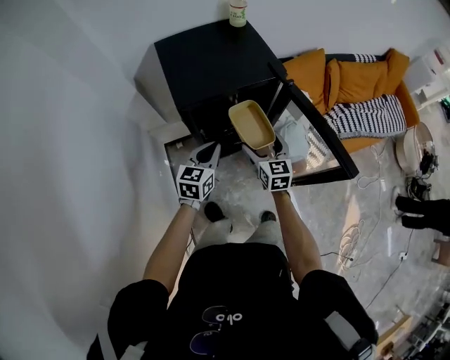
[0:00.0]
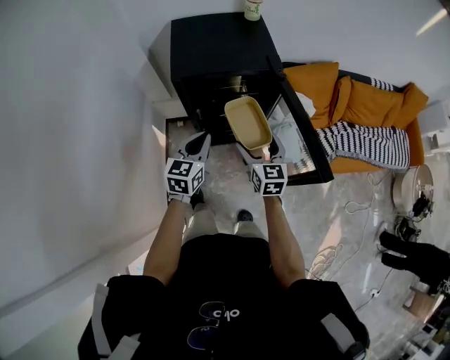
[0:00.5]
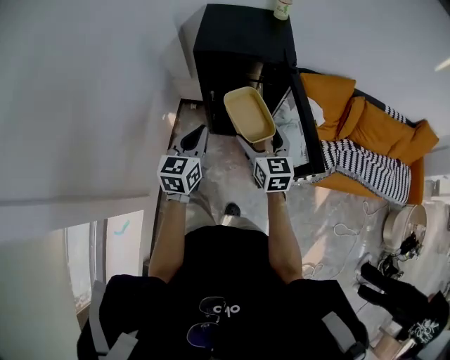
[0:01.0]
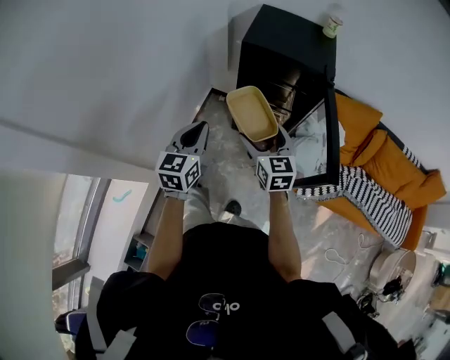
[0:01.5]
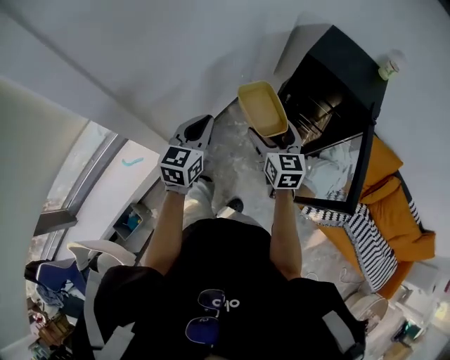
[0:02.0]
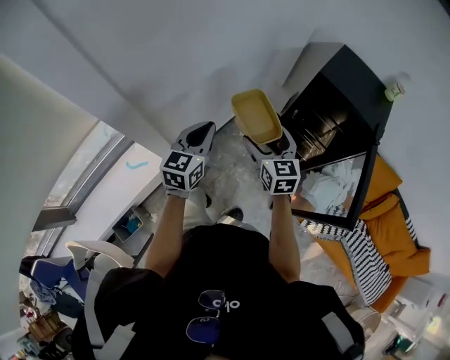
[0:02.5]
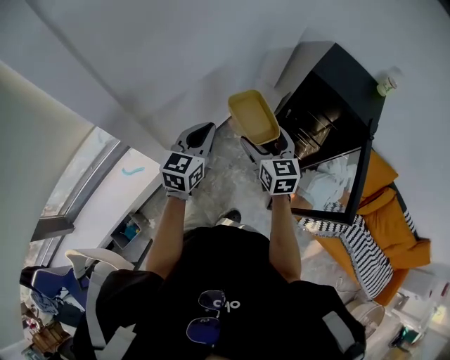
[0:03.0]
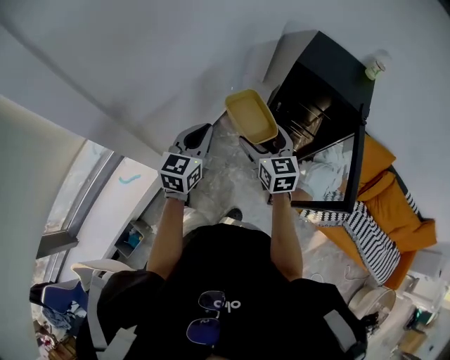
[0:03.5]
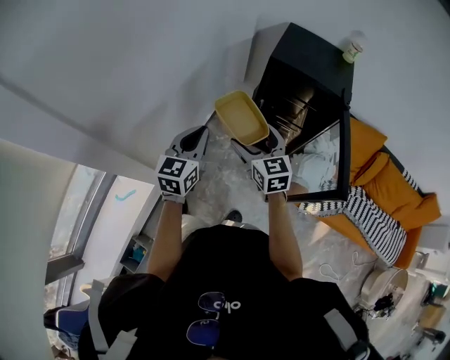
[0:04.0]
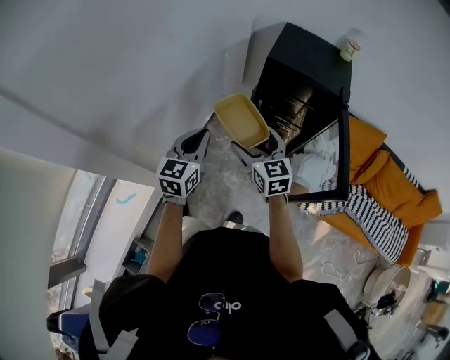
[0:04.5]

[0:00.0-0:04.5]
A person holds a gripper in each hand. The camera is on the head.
0:00.0 to 0:02.0: The left gripper changes place by about 40 cm, and swivels roughly 60 degrees; the right gripper shifts by roughly 30 cm, and changes its angle by some 50 degrees.
0:02.0 to 0:04.5: The left gripper travels to the right by approximately 5 cm.

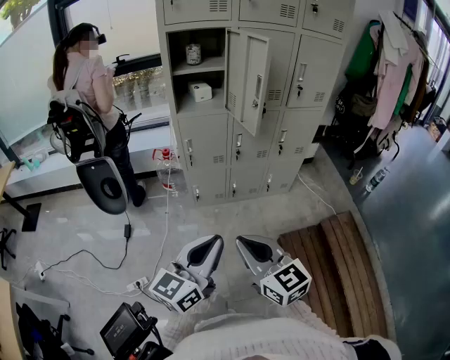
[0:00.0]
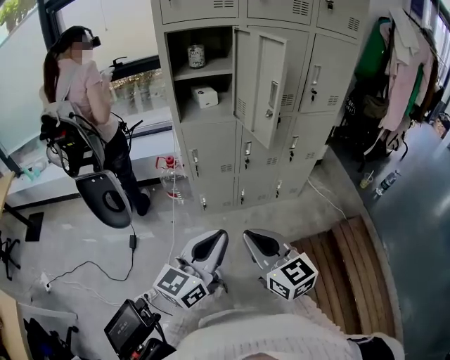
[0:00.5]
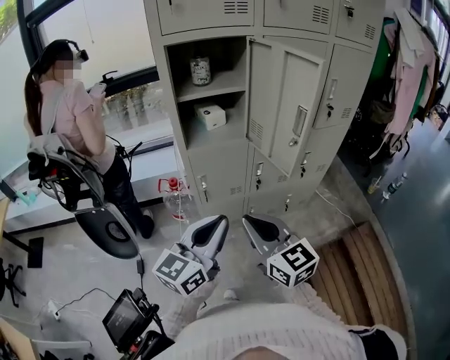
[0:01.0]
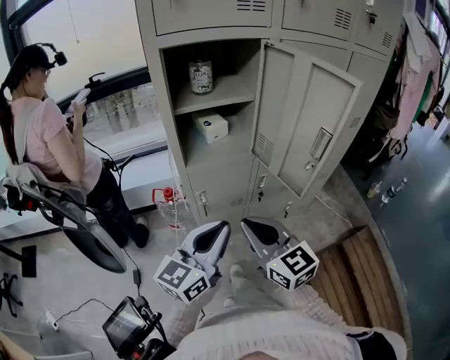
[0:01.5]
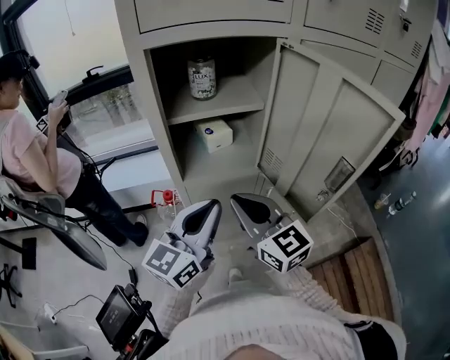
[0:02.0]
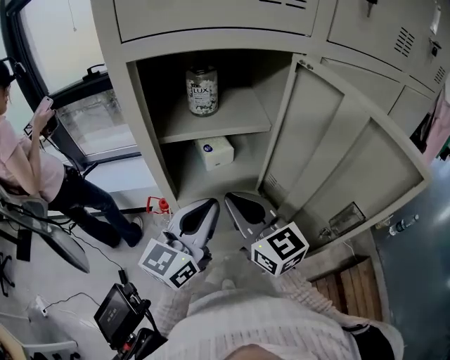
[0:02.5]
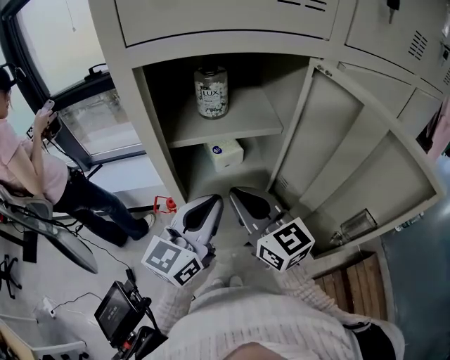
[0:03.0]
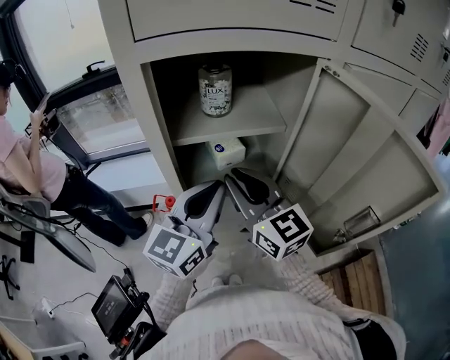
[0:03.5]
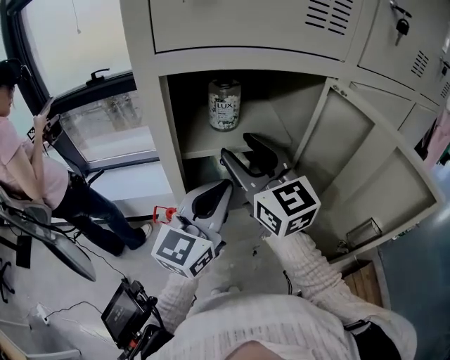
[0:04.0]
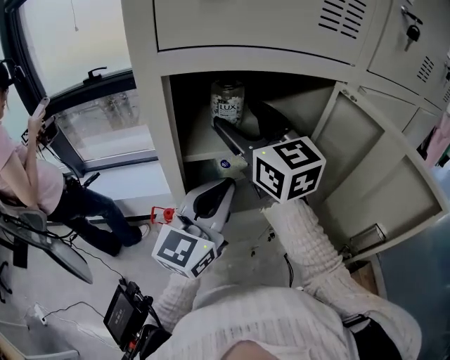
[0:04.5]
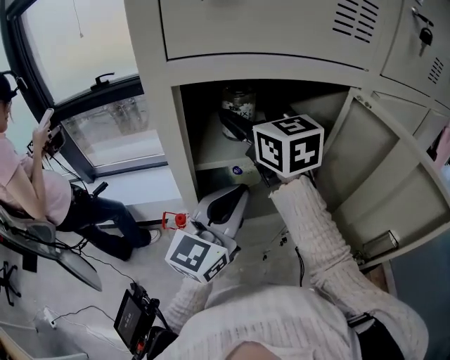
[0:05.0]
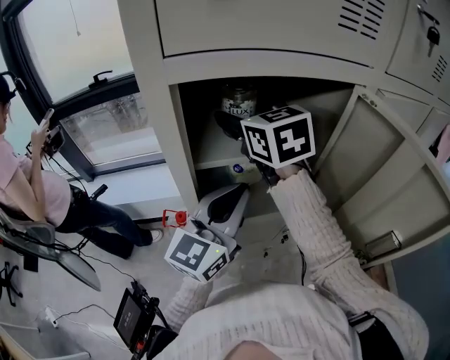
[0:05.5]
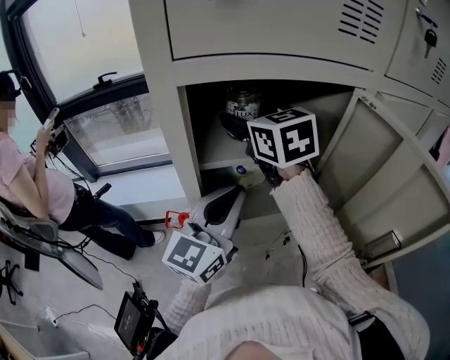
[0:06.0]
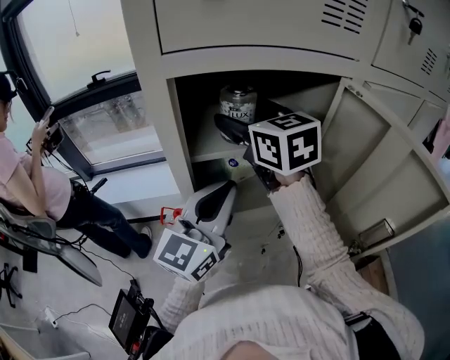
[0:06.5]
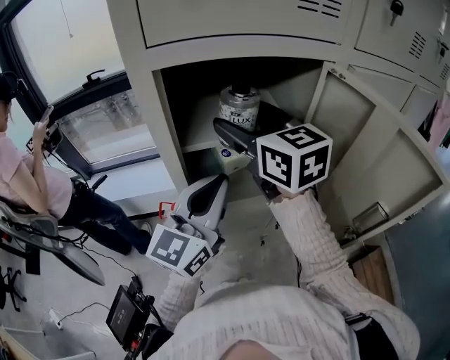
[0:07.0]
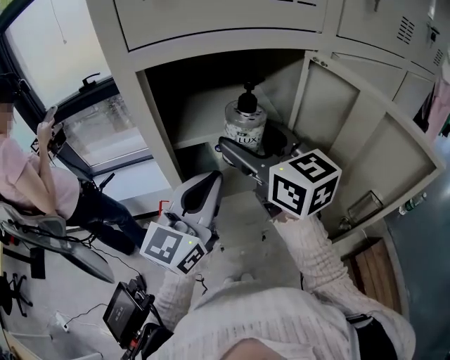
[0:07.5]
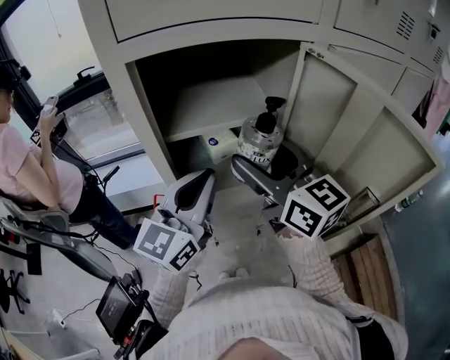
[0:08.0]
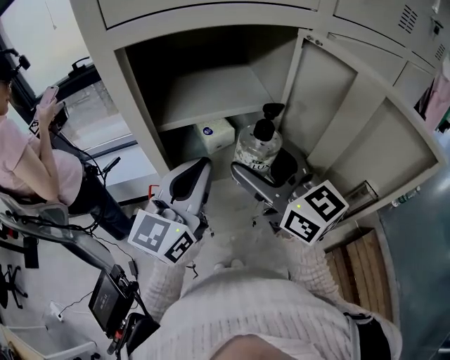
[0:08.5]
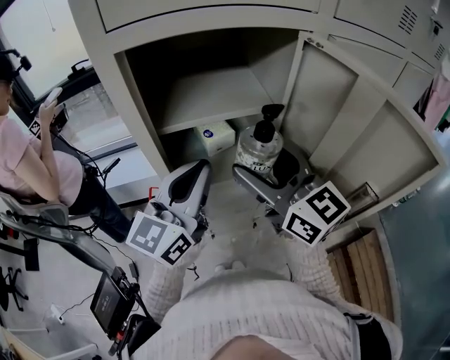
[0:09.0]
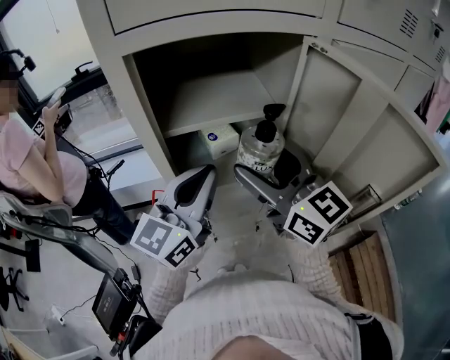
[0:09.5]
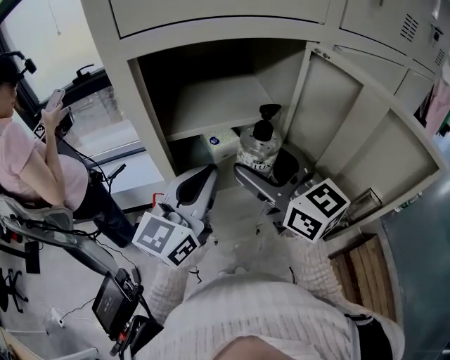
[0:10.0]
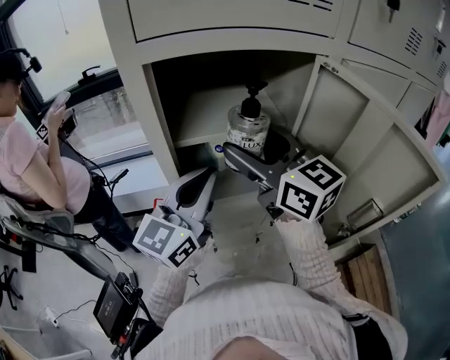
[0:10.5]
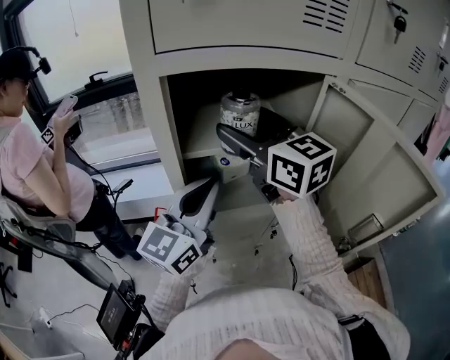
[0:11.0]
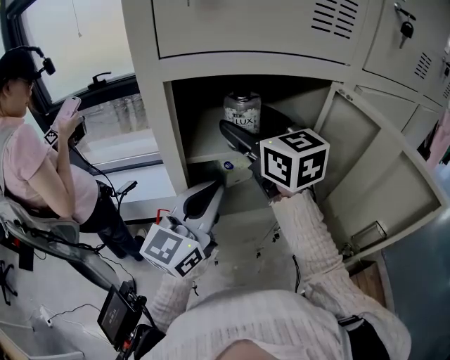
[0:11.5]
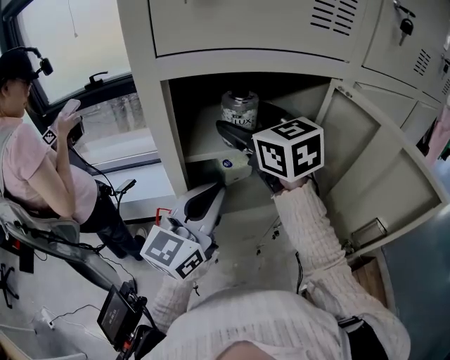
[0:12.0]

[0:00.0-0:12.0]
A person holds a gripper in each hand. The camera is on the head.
0:00.0 to 0:02.0: Both grippers are carried forward, approximately 50 cm.
0:02.0 to 0:04.0: The grippers both shift forward and upward by some 20 cm. The right gripper opens up.
0:04.0 to 0:06.0: The right gripper shifts approximately 10 cm forward, and opens up.
0:06.0 to 0:08.0: The right gripper is displaced backward and to the right by about 20 cm, and turns by approximately 20 degrees.
0:08.0 to 0:10.0: The grippers stay close to where they were, moving slightly.
0:10.0 to 0:12.0: The right gripper moves forward, upward and to the left, approximately 15 cm.

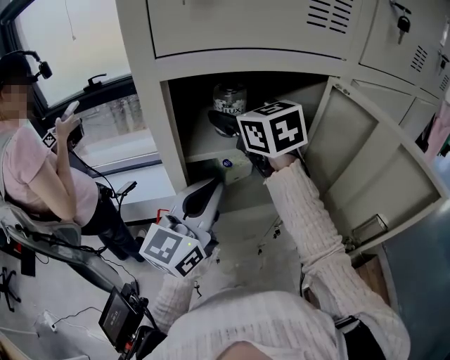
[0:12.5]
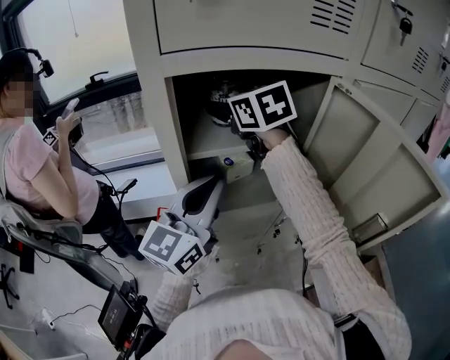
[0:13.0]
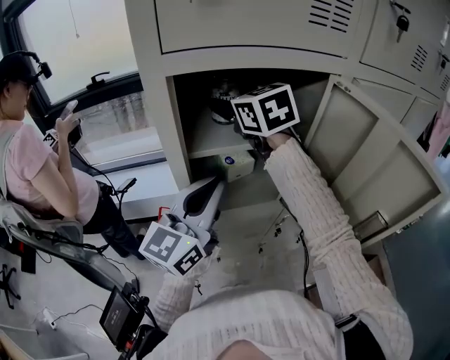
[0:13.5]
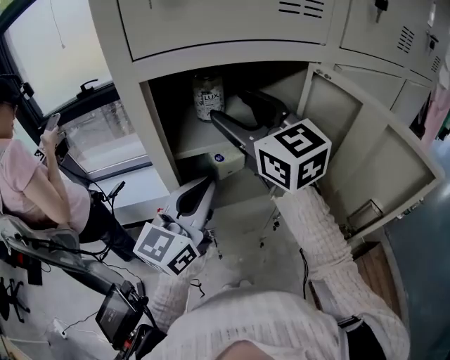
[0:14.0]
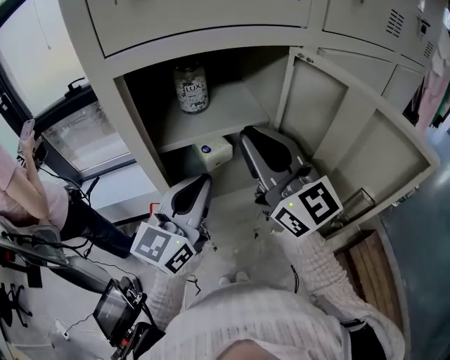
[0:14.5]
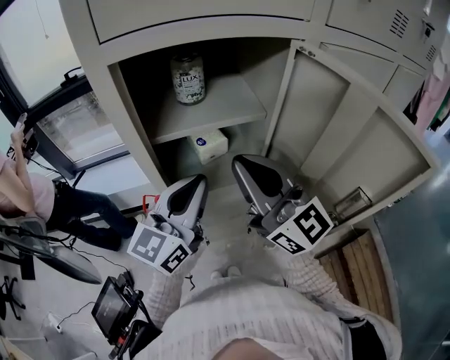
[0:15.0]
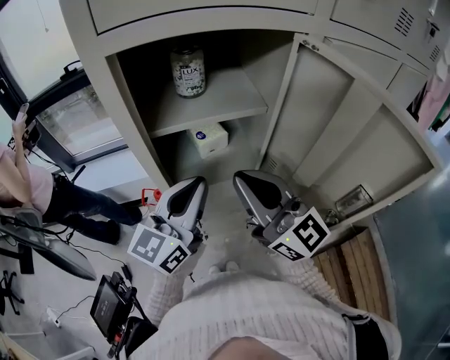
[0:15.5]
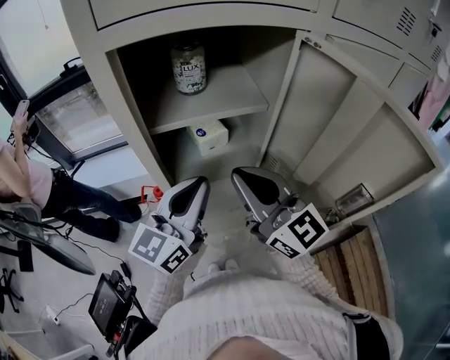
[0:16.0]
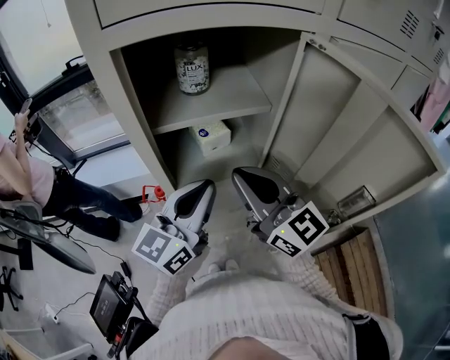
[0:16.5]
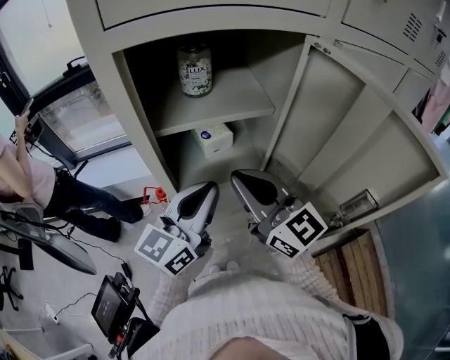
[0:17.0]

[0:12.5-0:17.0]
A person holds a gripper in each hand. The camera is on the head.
0:12.5 to 0:14.5: The right gripper is displaced backward and to the right by approximately 20 cm, points its fingers approximately 30 degrees further upward, and closes up.
0:14.5 to 0:17.0: The right gripper moves downward, some 10 cm.

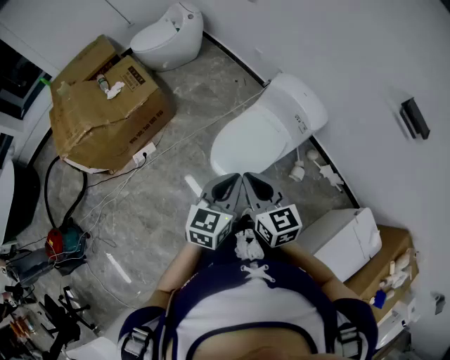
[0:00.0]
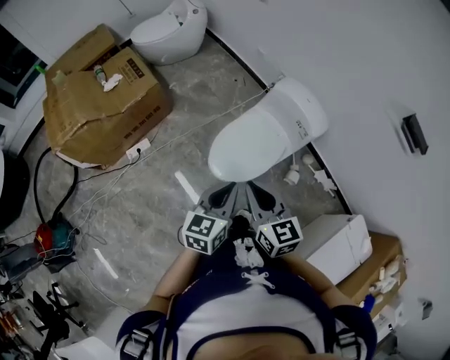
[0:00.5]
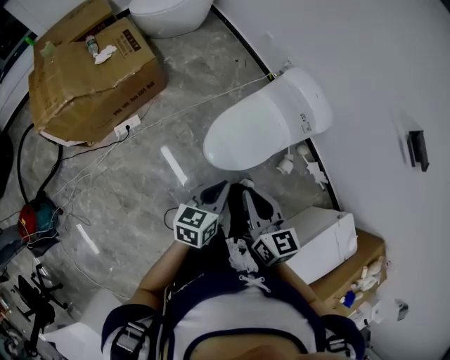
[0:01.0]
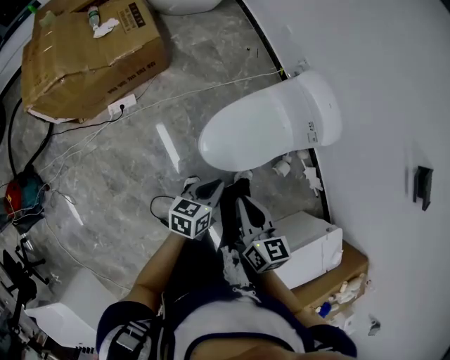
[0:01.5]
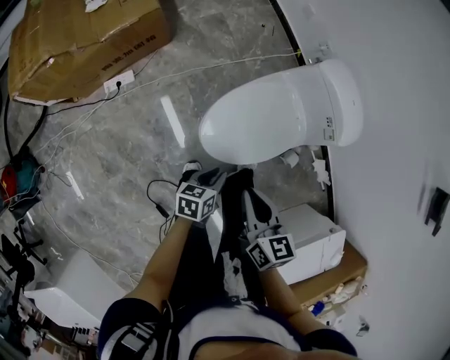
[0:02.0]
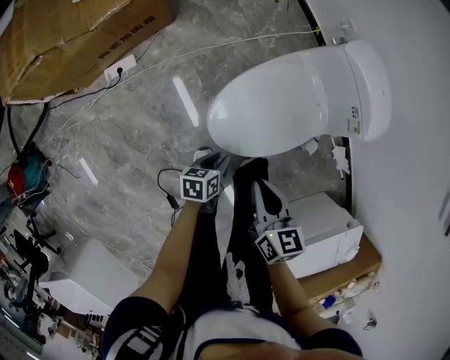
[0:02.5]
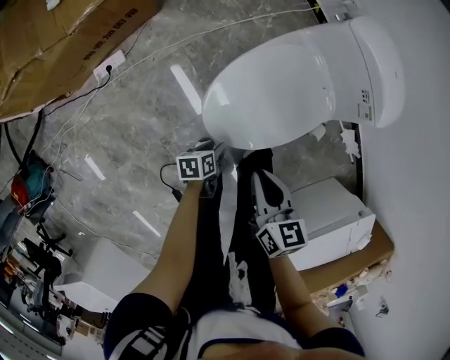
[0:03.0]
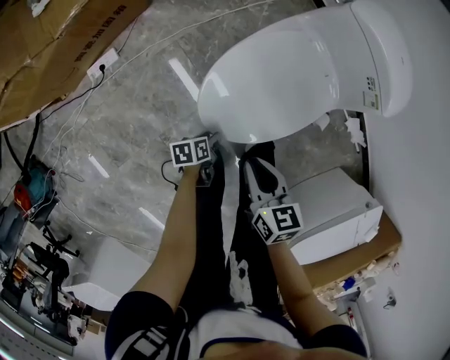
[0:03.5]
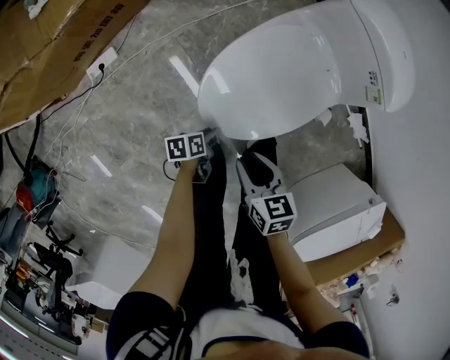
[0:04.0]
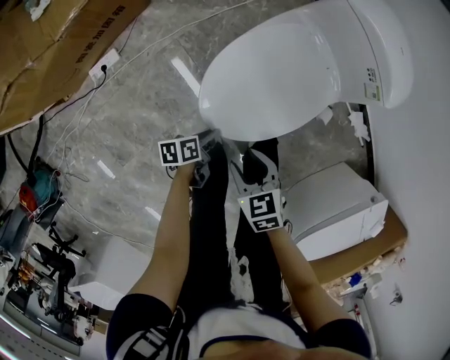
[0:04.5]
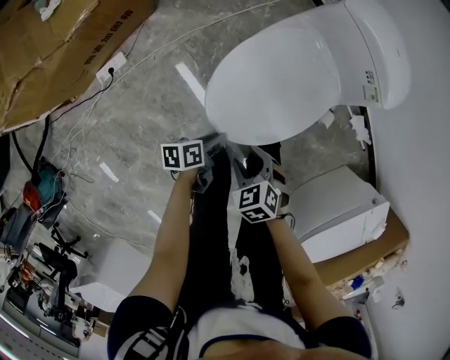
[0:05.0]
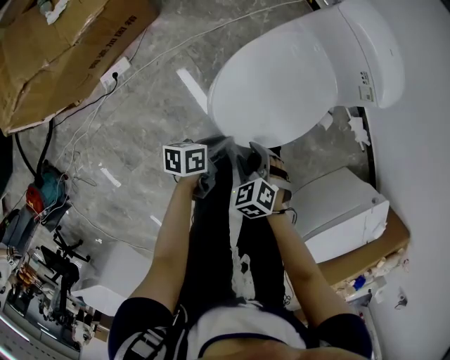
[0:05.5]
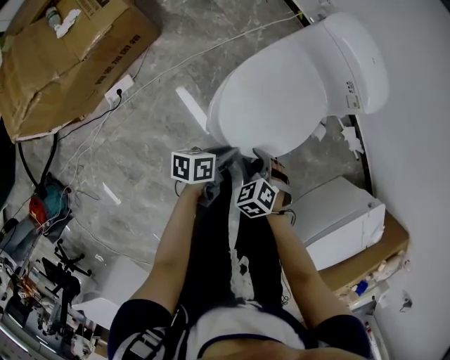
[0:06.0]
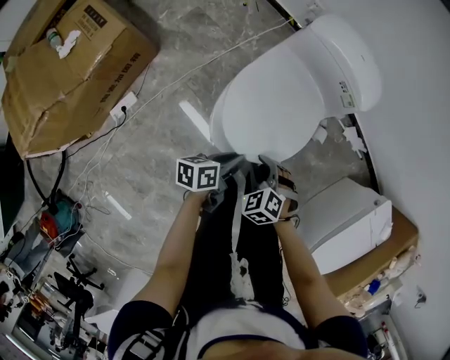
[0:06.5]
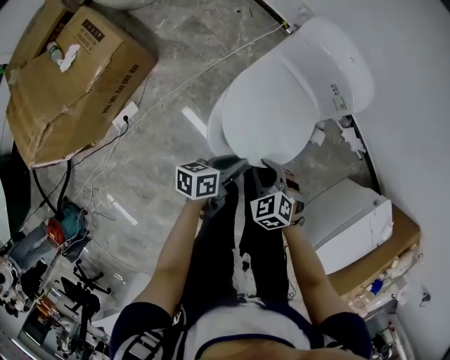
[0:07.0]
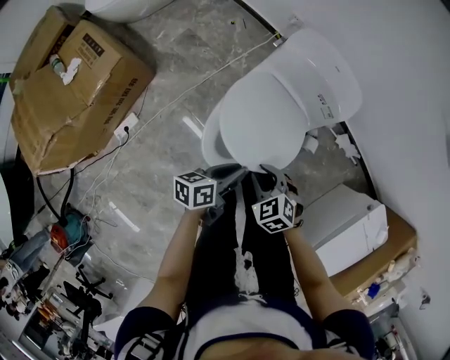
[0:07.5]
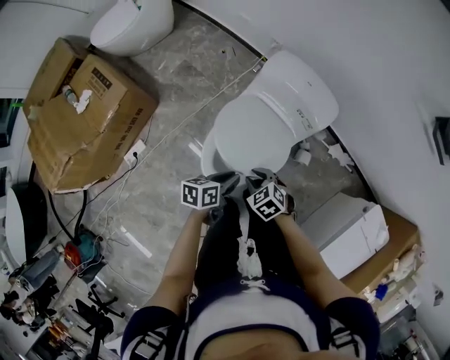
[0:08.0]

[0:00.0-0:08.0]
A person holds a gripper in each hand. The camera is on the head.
0:00.0 to 0:02.0: The left gripper moves downward, some 35 cm, and swivels approximately 40 degrees. Meanwhile the right gripper goes about 20 cm downward.
0:02.0 to 0:04.0: The grippers both shift downward by roughly 25 cm. The left gripper swivels some 30 degrees. The right gripper opens its fingers.
0:04.0 to 0:06.0: The left gripper goes about 20 cm upward, and rotates approximately 20 degrees, while the right gripper rotates around the line of its fingers by roughly 40 degrees, counterclockwise from behind.
0:06.0 to 0:08.0: Both grippers move upward, forward and to the right, about 15 cm.
